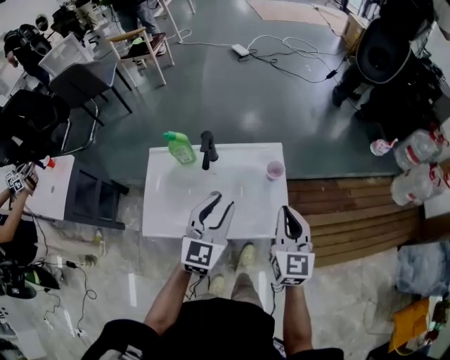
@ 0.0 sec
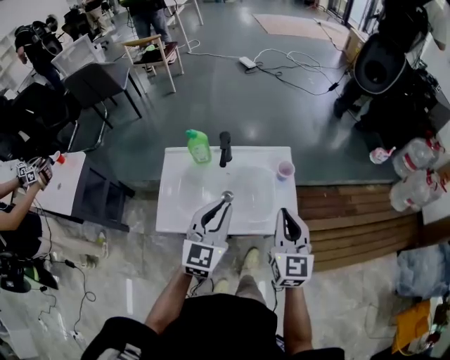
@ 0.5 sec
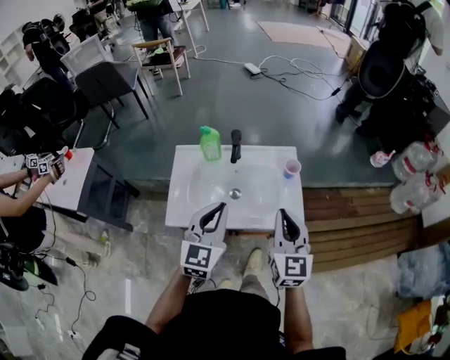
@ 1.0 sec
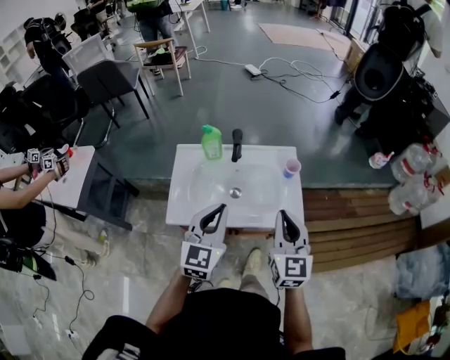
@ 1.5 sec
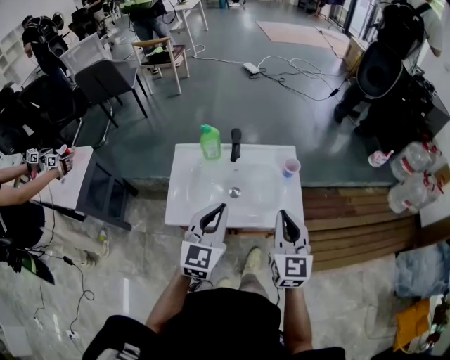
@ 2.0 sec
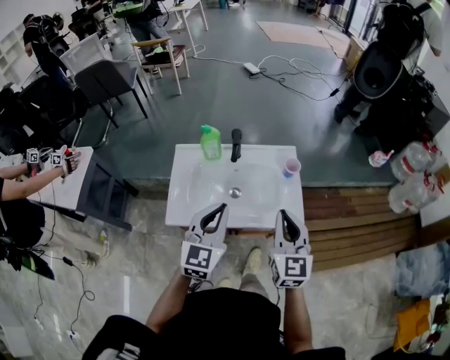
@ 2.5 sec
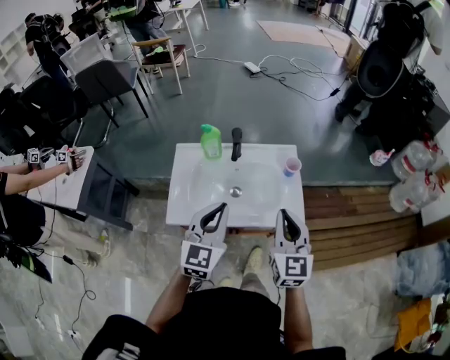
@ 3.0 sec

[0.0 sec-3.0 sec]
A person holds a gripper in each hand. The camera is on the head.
0.0 sec to 1.5 sec: Both grippers move backward and to the left, about 15 cm. The left gripper closes.
1.5 sec to 3.0 sec: The two grippers keep their place.

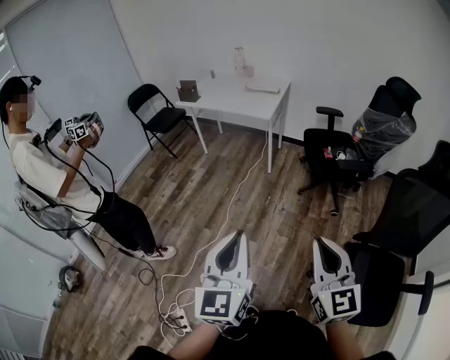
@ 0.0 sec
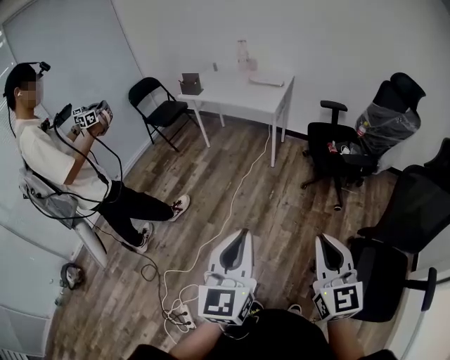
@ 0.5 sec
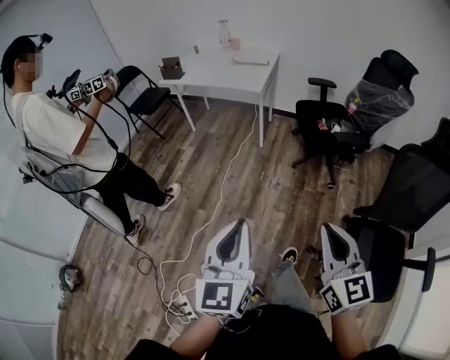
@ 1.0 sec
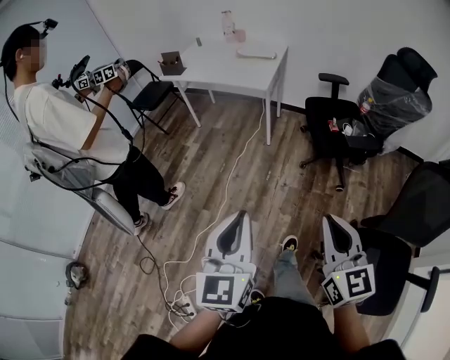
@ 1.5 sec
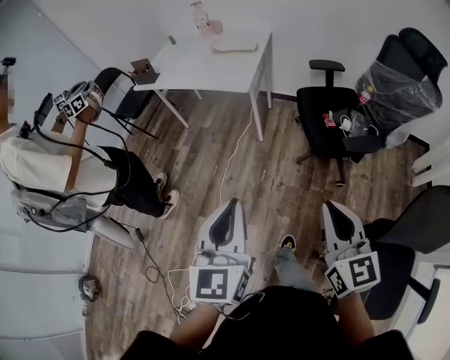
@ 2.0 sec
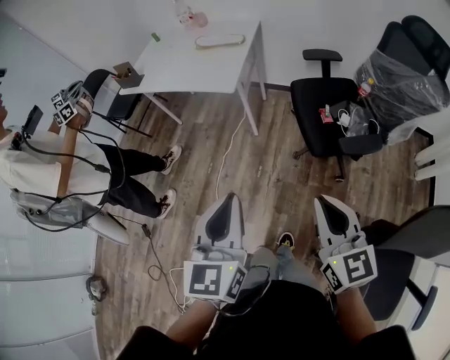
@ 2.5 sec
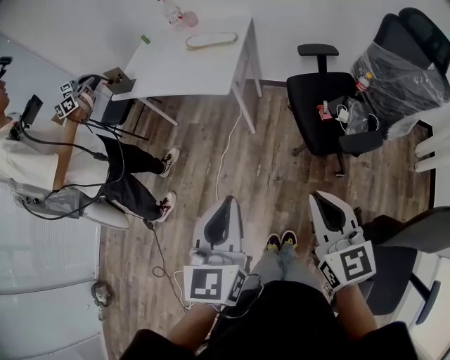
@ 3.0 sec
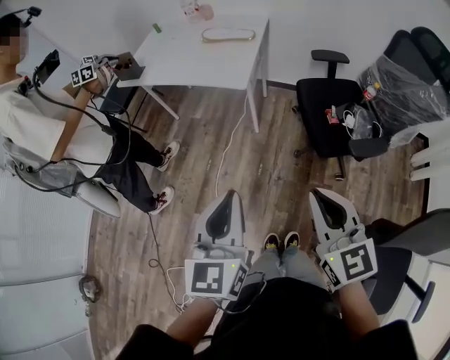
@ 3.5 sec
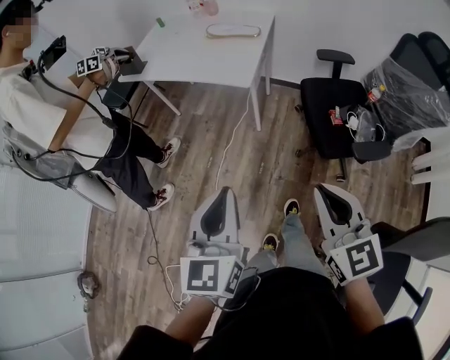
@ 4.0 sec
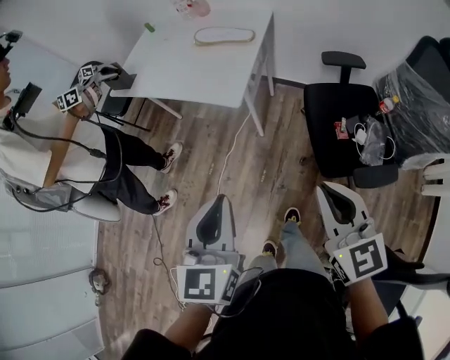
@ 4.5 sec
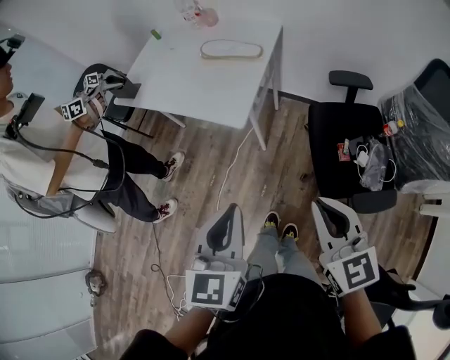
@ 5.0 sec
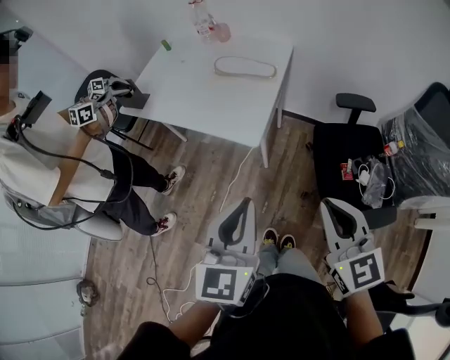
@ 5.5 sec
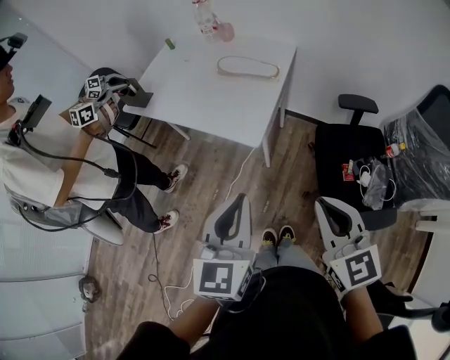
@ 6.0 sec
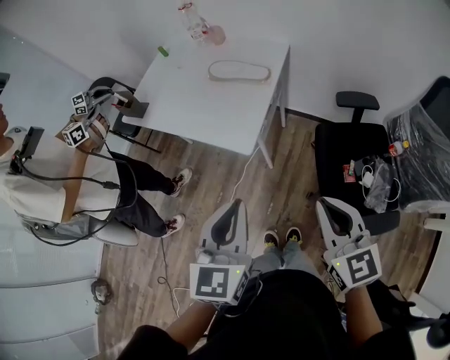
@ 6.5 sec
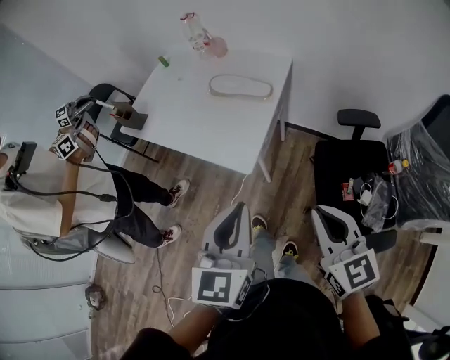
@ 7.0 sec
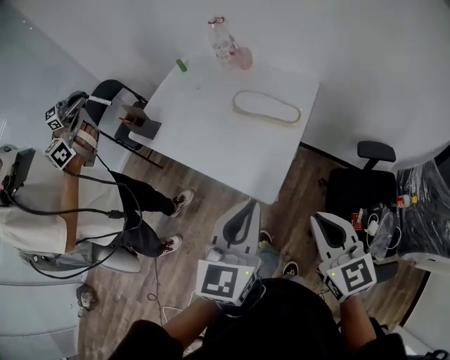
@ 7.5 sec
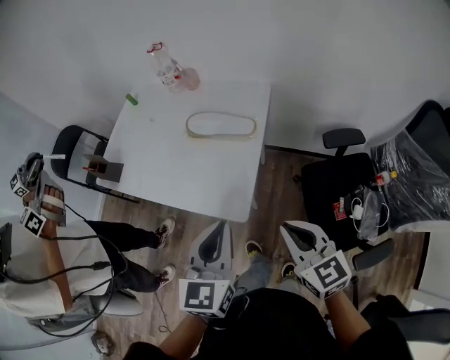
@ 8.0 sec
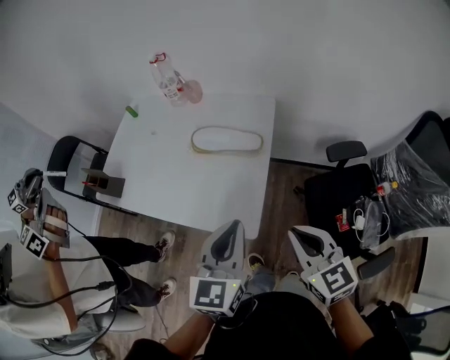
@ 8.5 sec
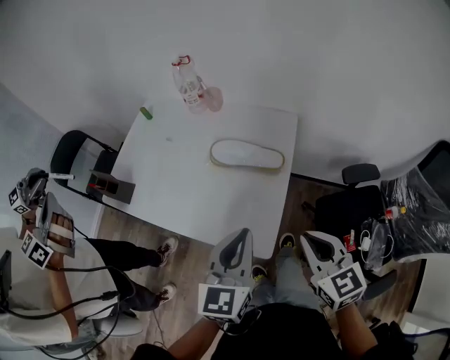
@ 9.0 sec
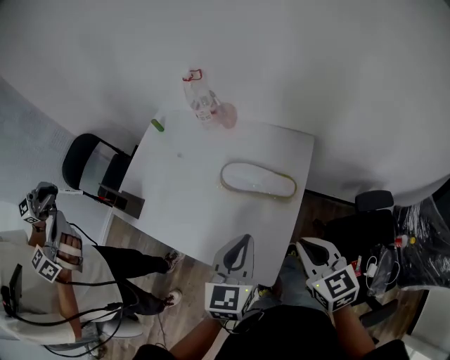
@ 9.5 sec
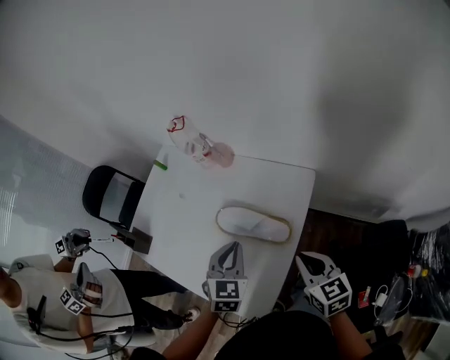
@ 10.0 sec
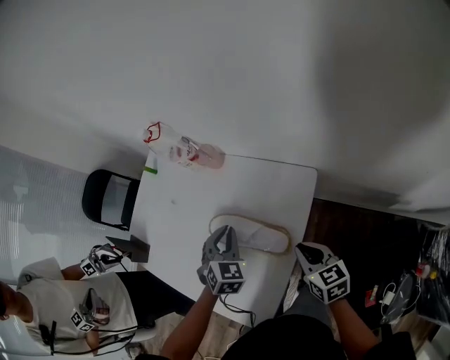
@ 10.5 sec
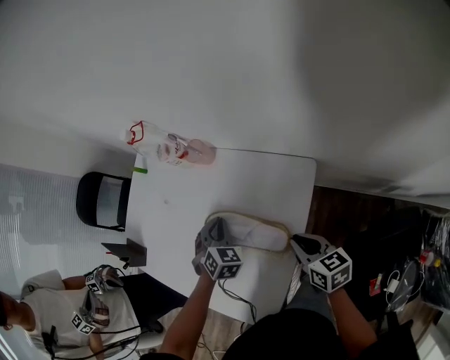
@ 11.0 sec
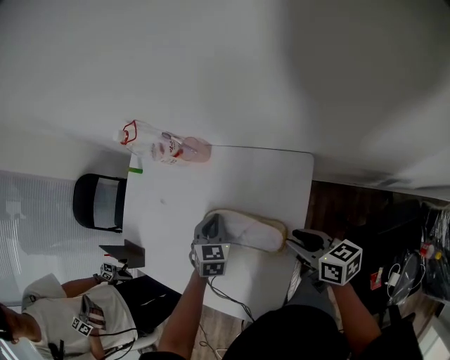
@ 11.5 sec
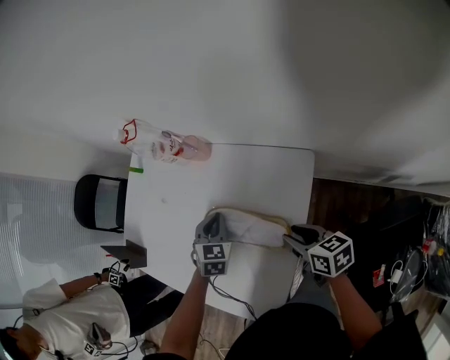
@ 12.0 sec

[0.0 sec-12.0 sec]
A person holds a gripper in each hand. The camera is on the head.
0.0 sec to 2.0 sec: Both grippers travel together forward, some 30 cm.
2.0 sec to 4.0 sec: Both grippers move forward, about 15 cm.
4.0 sec to 6.0 sec: The two grippers go some 25 cm forward.
6.0 sec to 8.0 sec: Both grippers move forward, some 20 cm.
8.0 sec to 10.0 sec: The grippers both shift forward by approximately 35 cm. The left gripper turns by some 30 degrees.
10.0 sec to 12.0 sec: The left gripper goes some 20 cm forward and downward; the right gripper shifts approximately 15 cm downward and forward, turns by some 30 degrees, and opens its fingers.

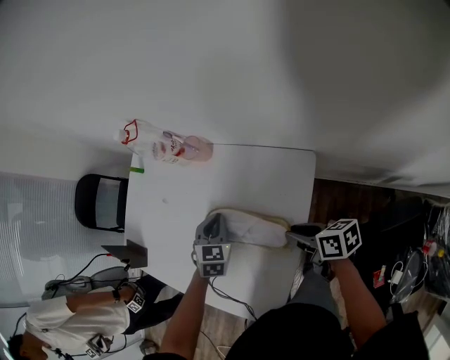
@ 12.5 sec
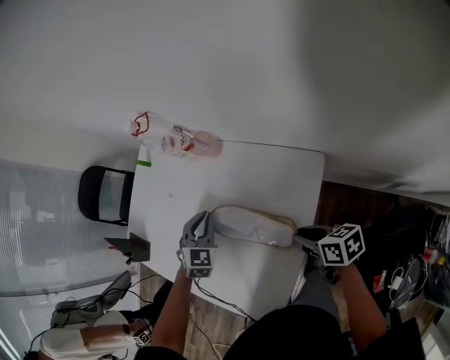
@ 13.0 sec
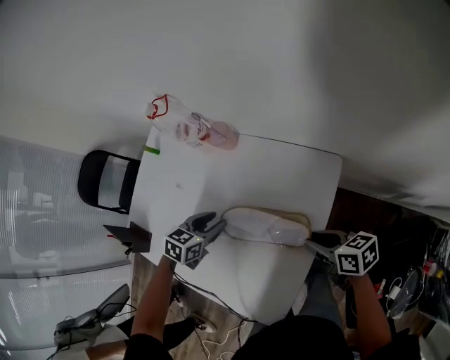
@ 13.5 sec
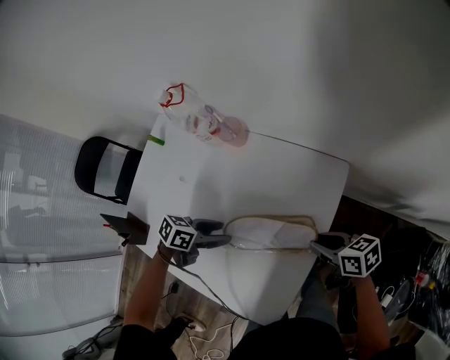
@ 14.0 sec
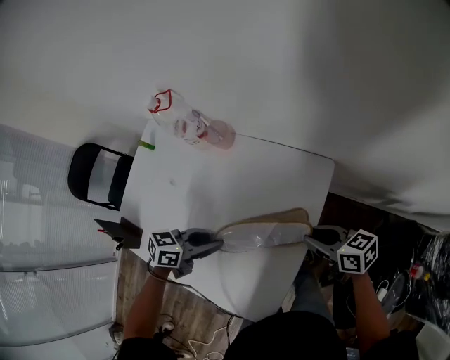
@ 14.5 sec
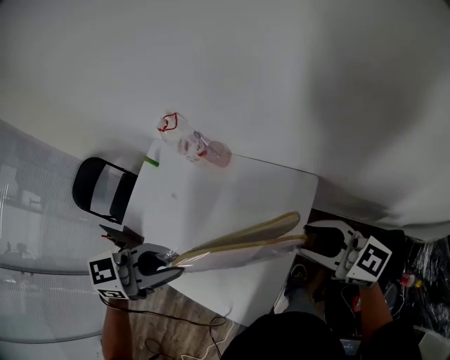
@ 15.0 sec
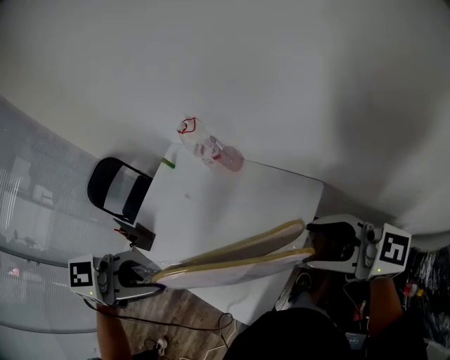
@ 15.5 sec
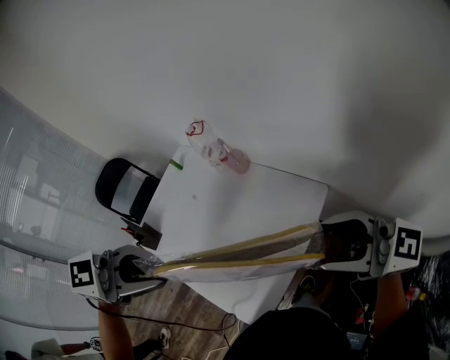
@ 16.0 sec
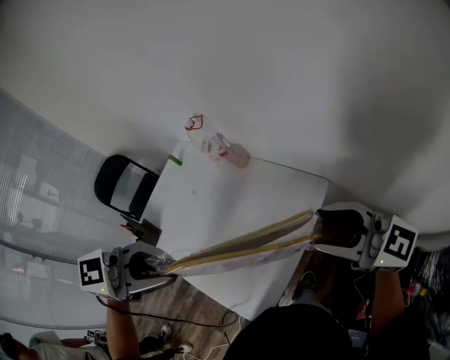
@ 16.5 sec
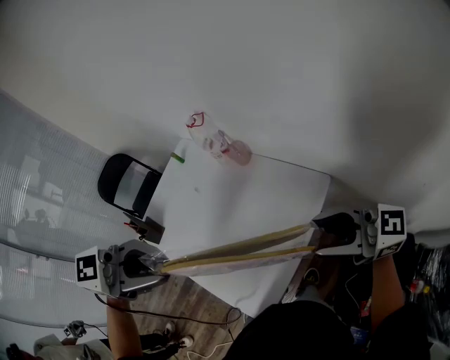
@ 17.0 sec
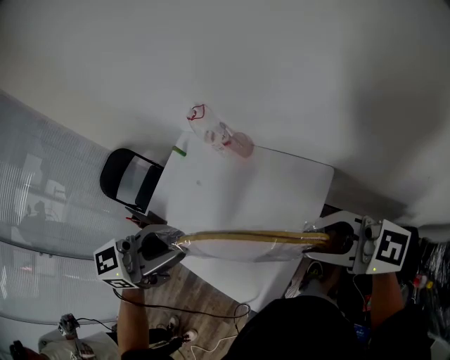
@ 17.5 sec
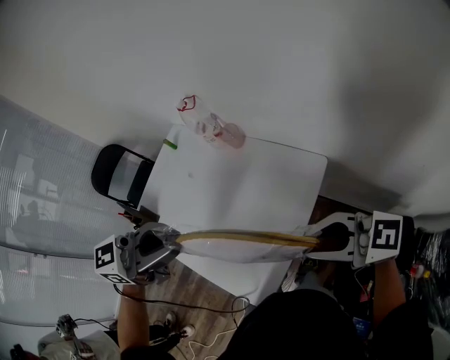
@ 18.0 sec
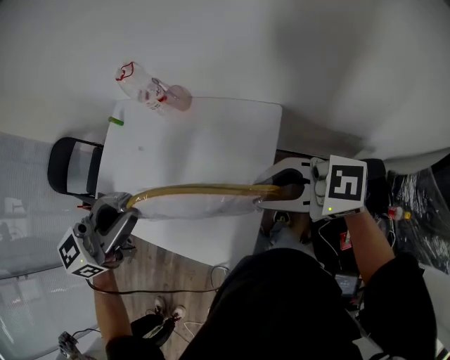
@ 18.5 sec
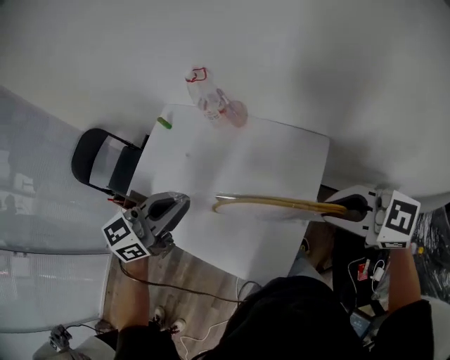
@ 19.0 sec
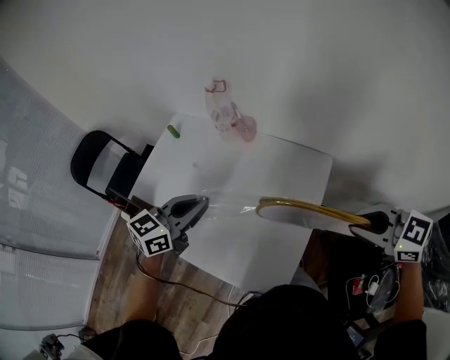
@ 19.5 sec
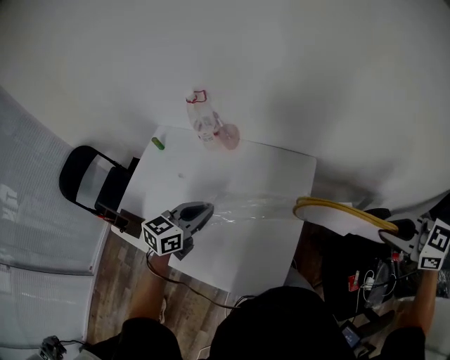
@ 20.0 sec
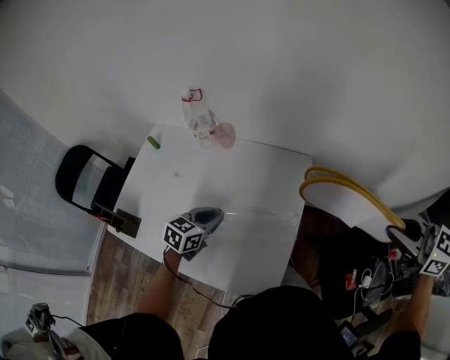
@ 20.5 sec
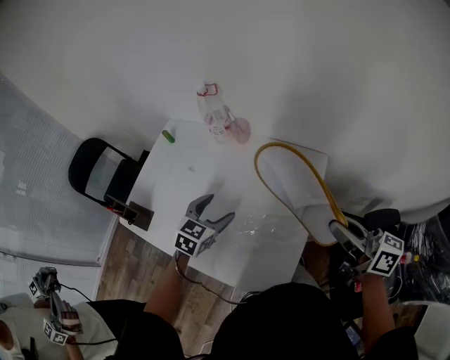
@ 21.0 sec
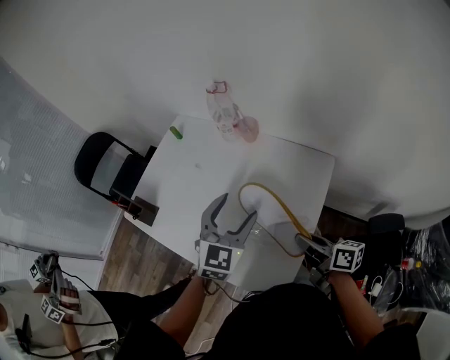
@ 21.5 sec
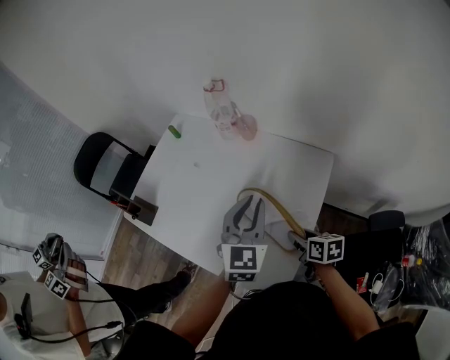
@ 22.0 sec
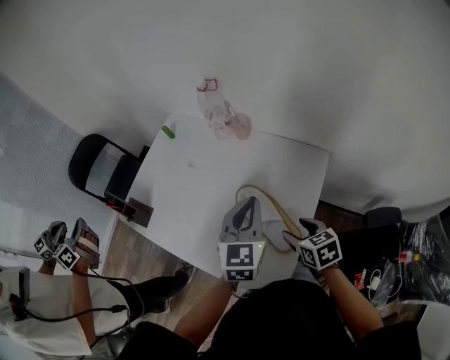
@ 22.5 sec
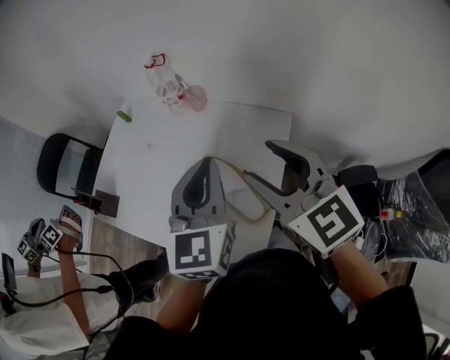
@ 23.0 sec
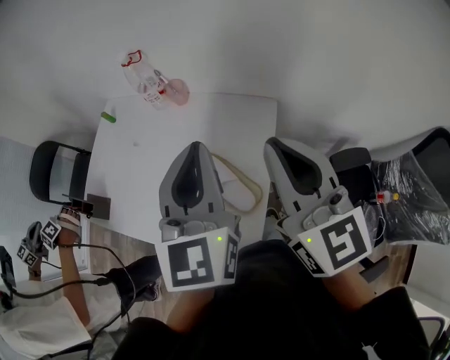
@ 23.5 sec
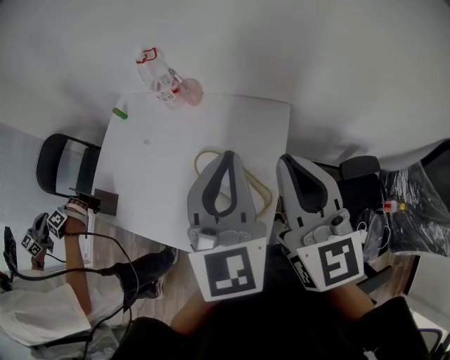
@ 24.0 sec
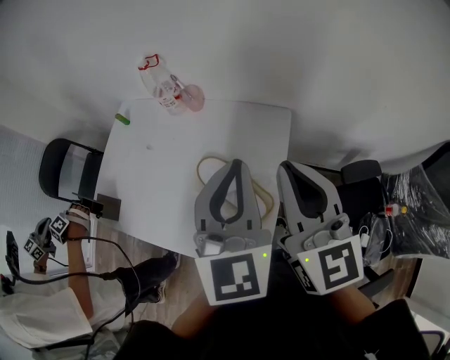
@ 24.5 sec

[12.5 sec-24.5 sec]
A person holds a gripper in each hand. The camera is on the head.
12.5 sec to 14.5 sec: The left gripper changes place by about 10 cm, turns by approximately 60 degrees, and opens, then closes again.
14.5 sec to 16.5 sec: The two grippers go about 35 cm upward. The right gripper changes its angle by about 50 degrees, and opens, while the left gripper changes its angle by approximately 40 degrees.
16.5 sec to 18.5 sec: The two grippers go some 5 cm downward. The right gripper closes its fingers.
18.5 sec to 20.5 sec: The right gripper moves about 20 cm, and changes its angle by about 40 degrees; the left gripper shifts some 25 cm downward, and rotates roughly 30 degrees.
20.5 sec to 22.5 sec: The left gripper heads upward and to the right, covering some 15 cm, changes its angle by roughly 40 degrees, and opens and closes again; the right gripper is displaced downward and to the left by some 35 cm, swivels about 30 degrees, and opens up.
22.5 sec to 24.5 sec: The right gripper heads upward, covering some 30 cm, tilts its fingers some 40 degrees upward, and closes, while the left gripper goes approximately 15 cm upward and to the right.
